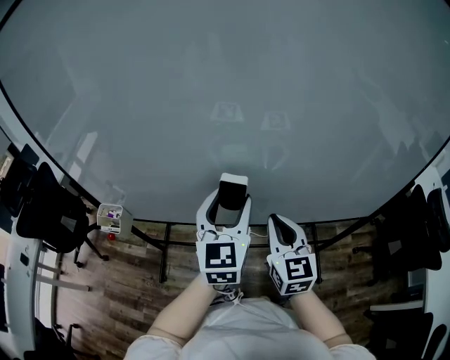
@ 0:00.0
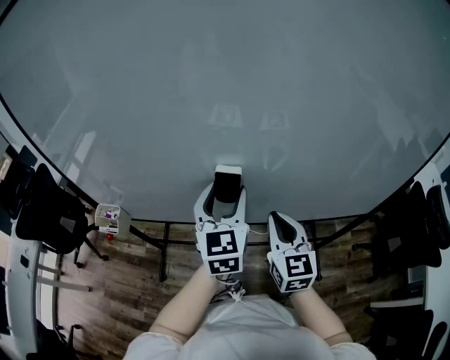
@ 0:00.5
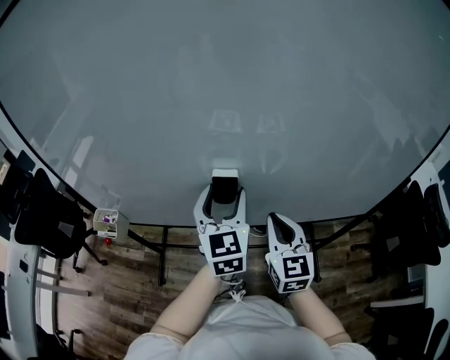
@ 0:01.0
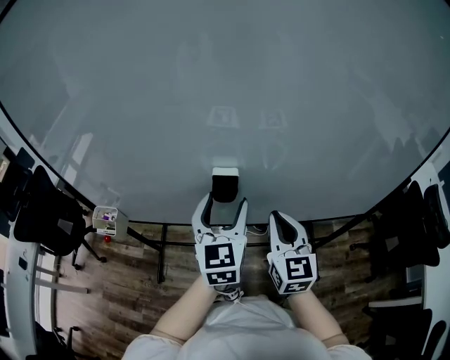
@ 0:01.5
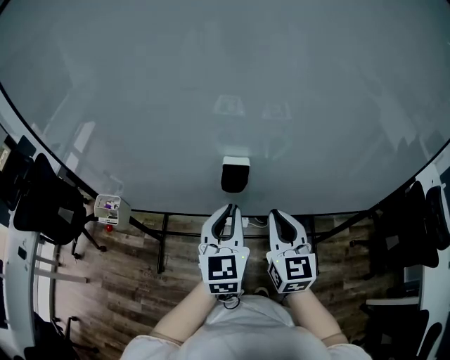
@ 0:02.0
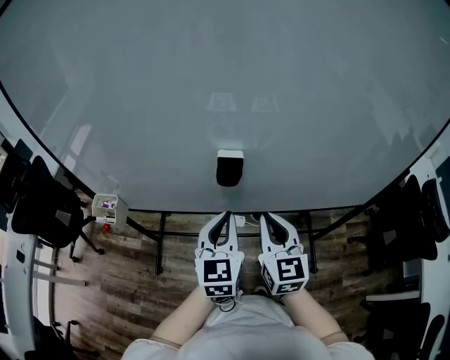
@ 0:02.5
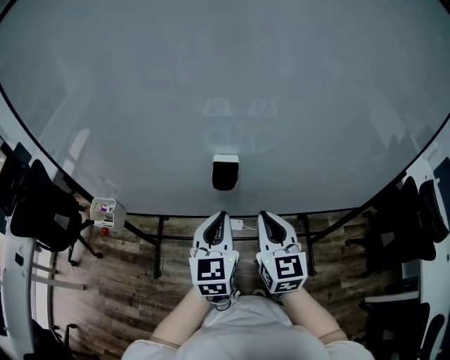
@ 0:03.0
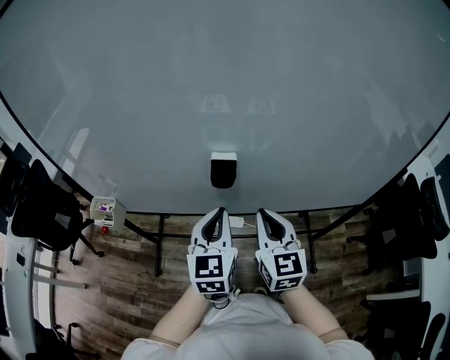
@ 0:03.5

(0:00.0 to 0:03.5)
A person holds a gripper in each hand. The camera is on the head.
0:00.0 - 0:02.0: The left gripper moves downward, about 5 cm, and closes.
0:02.0 - 0:03.5: The grippers move only a little.

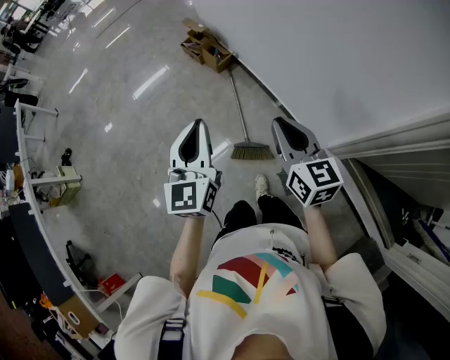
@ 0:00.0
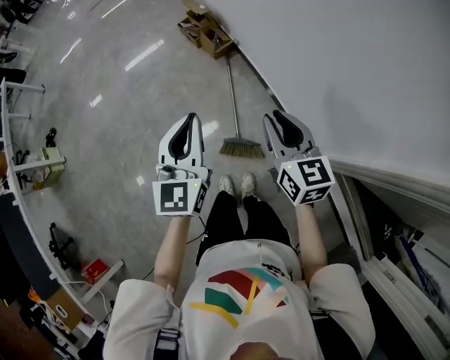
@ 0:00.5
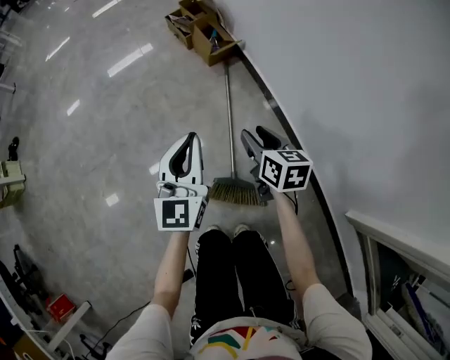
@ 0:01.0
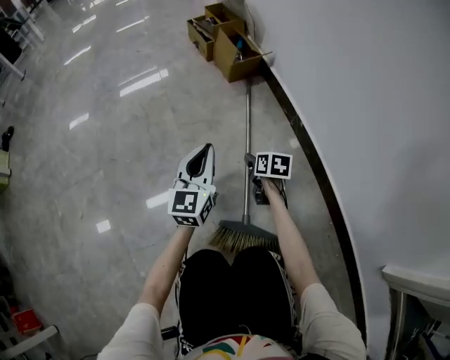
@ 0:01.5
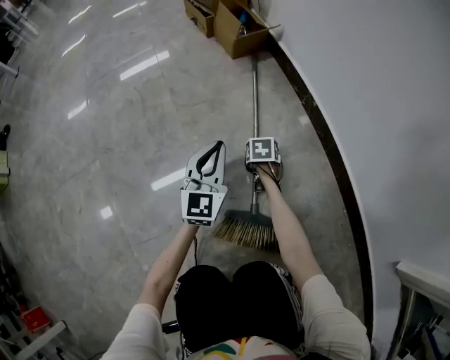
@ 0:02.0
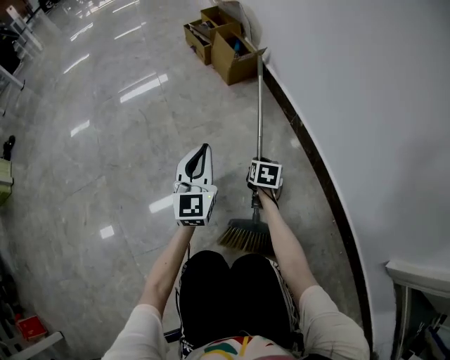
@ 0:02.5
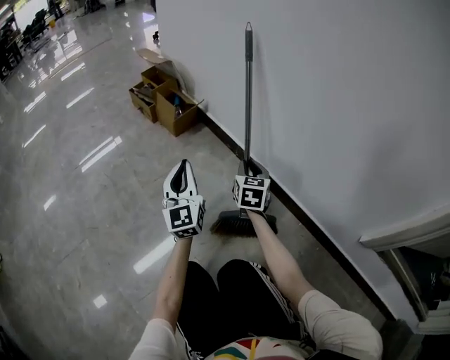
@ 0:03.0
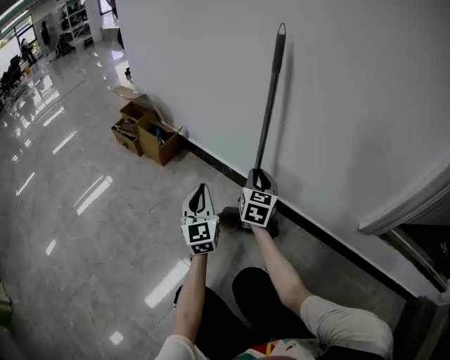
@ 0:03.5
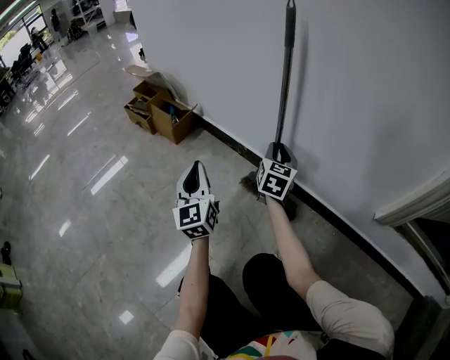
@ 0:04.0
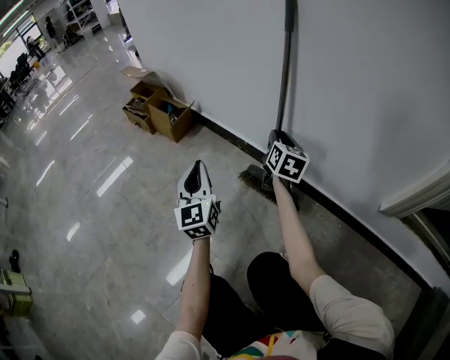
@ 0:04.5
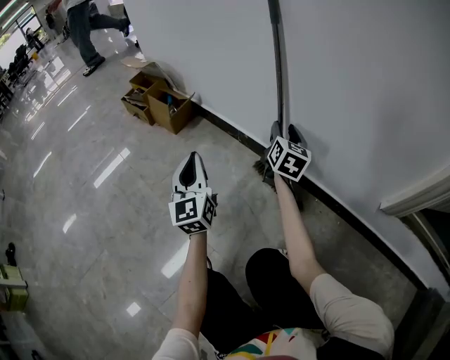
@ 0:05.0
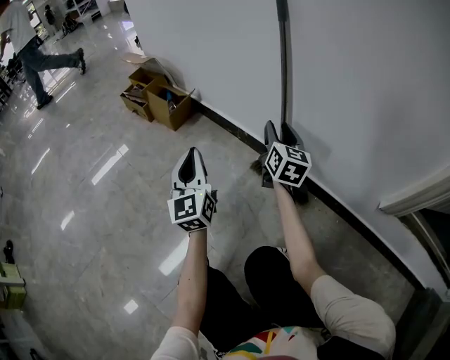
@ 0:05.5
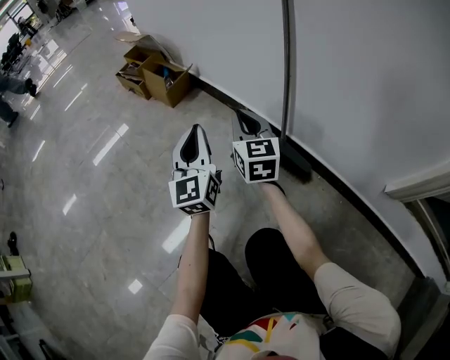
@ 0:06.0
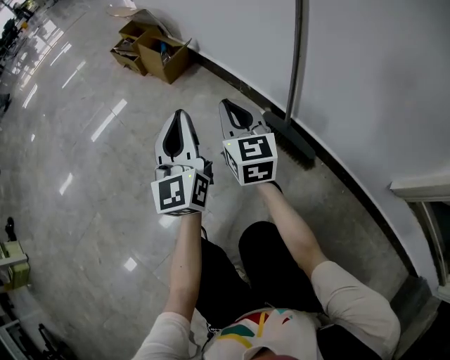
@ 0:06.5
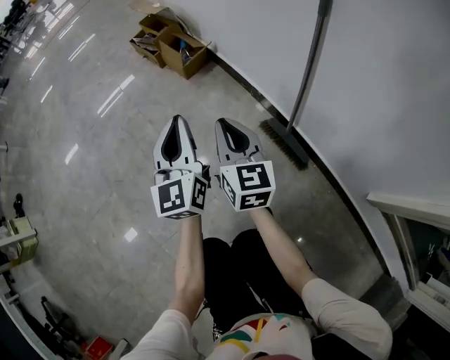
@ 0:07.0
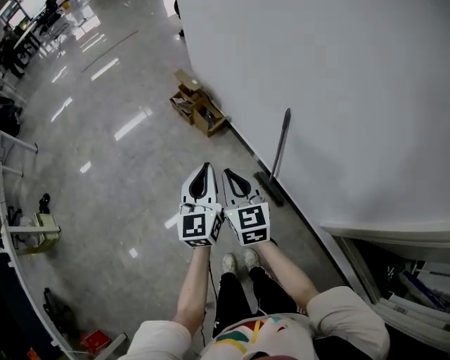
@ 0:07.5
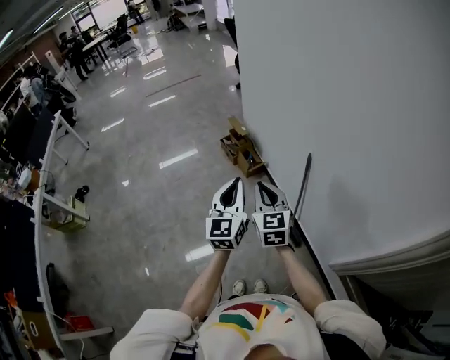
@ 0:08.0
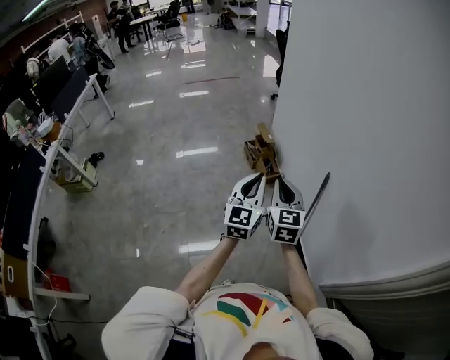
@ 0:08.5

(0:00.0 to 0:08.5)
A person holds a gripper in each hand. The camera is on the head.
0:00.0 - 0:02.0: The right gripper heads downward, covering some 1 m, tips its fingers downward by roughly 50 degrees, and opens up. Meanwhile the left gripper is displaced downward and forward by some 90 cm.
0:02.0 - 0:04.0: The right gripper travels upward by approximately 35 cm, and tips its fingers upward by approximately 50 degrees, while the left gripper is displaced upward by approximately 20 cm.
0:04.0 - 0:06.5: The right gripper travels to the left by roughly 15 cm, and rotates approximately 40 degrees.
0:06.5 - 0:08.5: Both grippers travel together upward, about 70 cm.

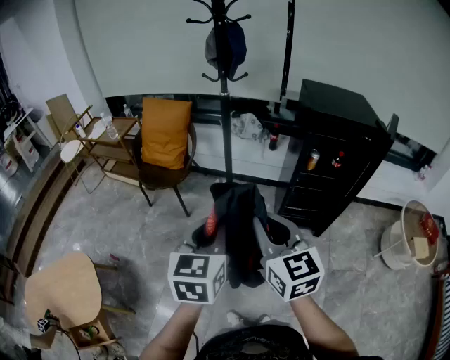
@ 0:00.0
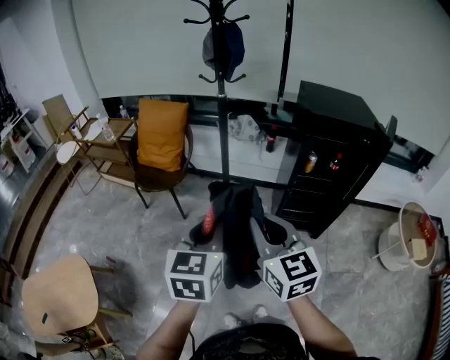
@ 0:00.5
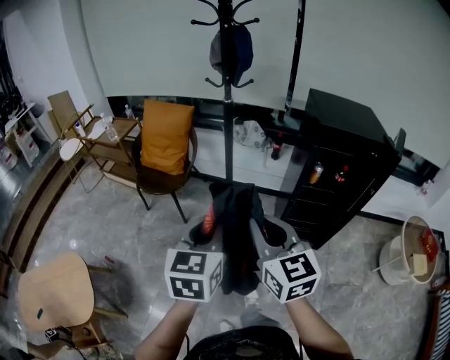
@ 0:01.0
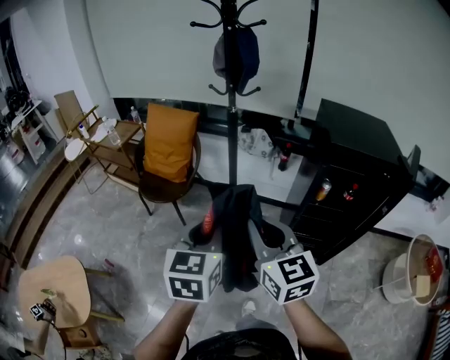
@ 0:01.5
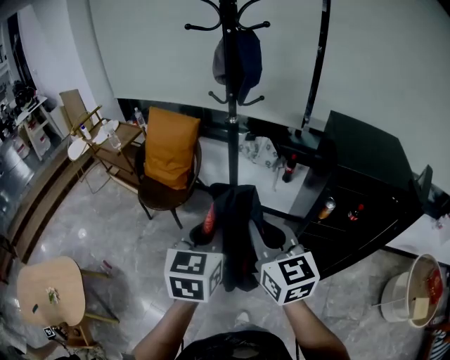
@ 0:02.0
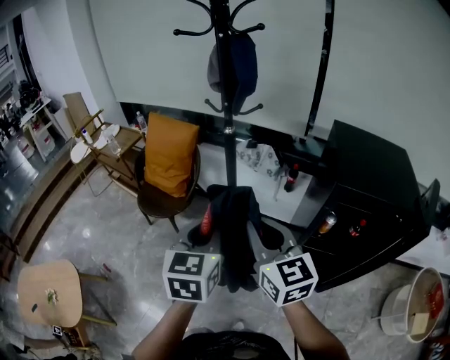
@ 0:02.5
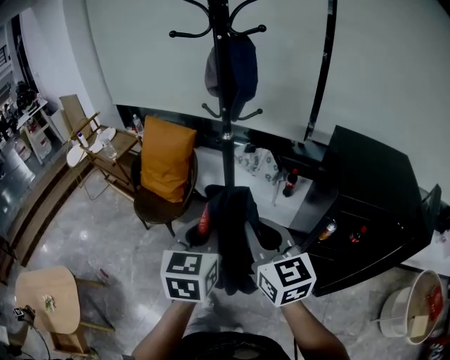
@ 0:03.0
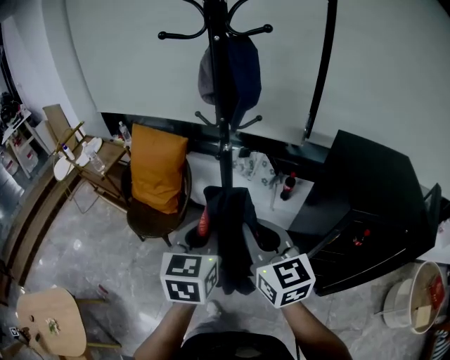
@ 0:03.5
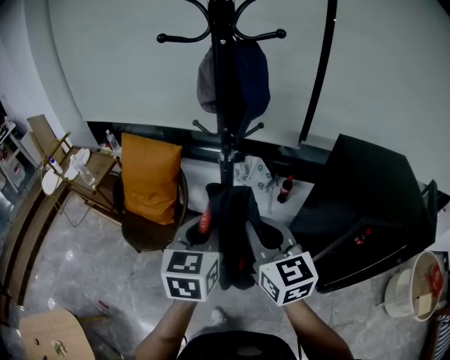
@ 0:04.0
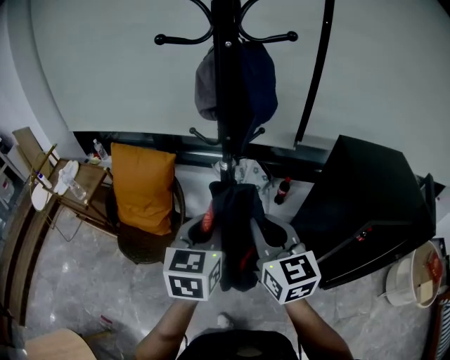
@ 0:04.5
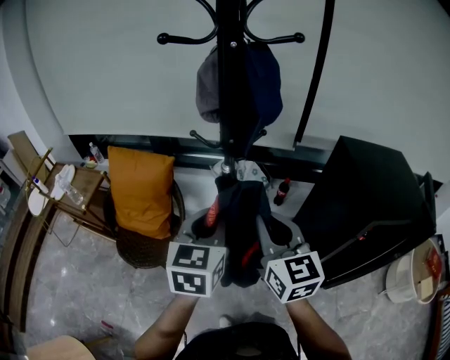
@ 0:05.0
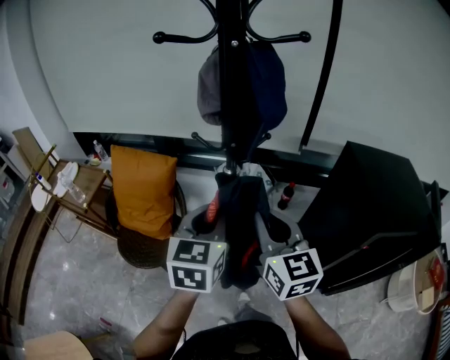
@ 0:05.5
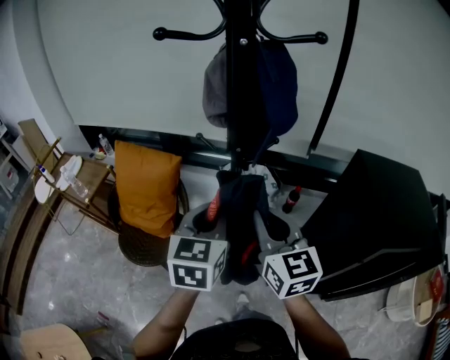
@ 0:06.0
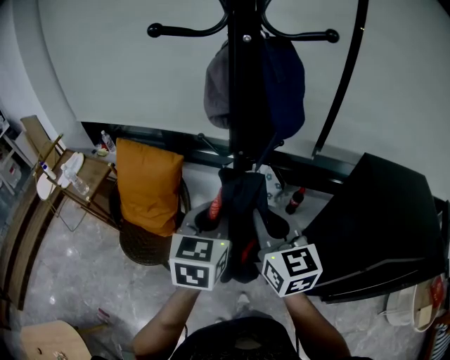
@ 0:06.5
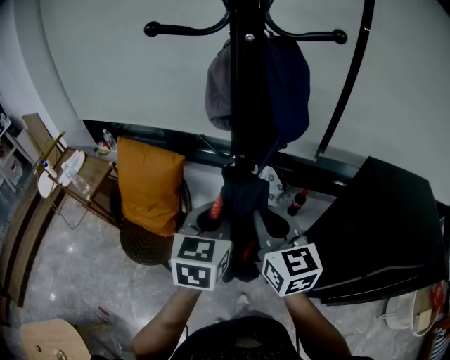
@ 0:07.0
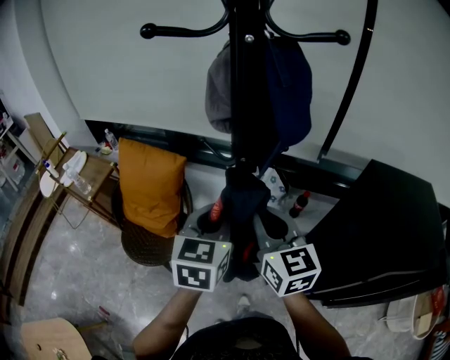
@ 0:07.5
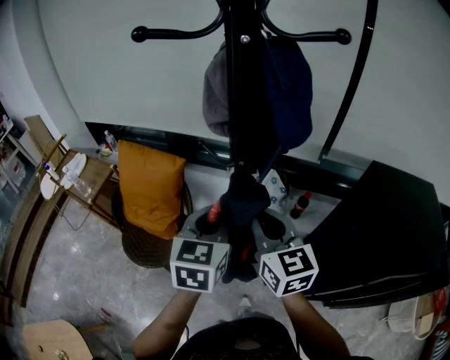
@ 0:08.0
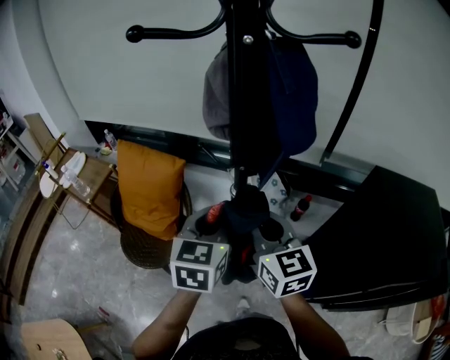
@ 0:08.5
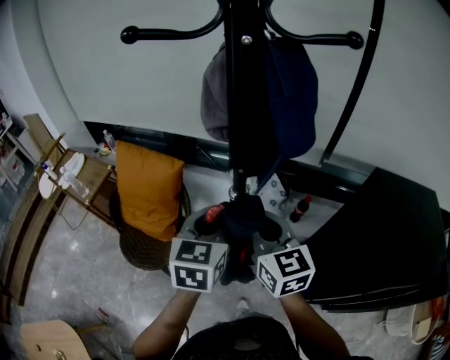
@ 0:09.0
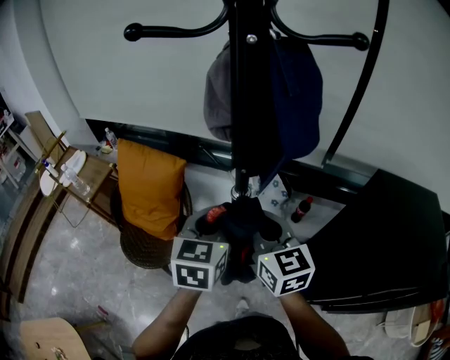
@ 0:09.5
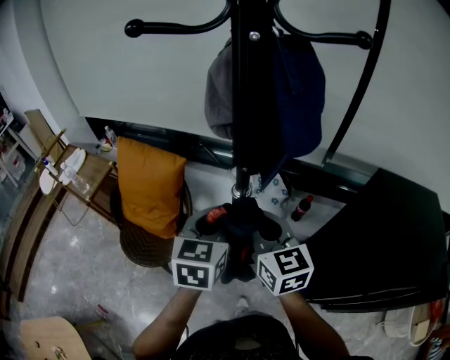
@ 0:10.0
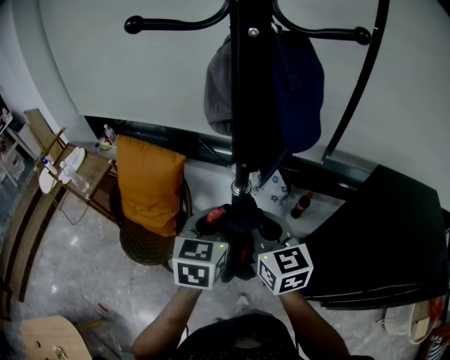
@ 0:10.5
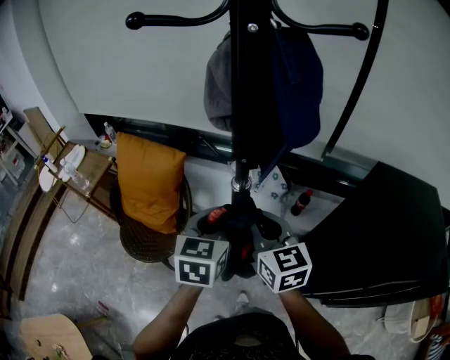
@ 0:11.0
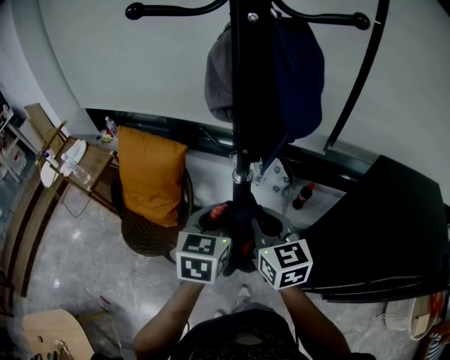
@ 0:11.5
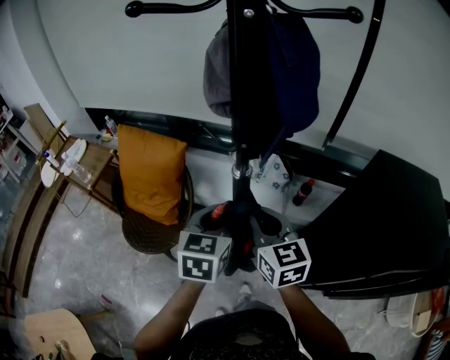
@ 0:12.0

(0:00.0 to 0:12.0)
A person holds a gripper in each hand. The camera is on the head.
0:00.0 - 0:02.0: The two grippers go roughly 25 cm forward.
0:02.0 - 0:04.0: Both grippers move forward, some 20 cm.
0:04.0 - 0:06.0: Both grippers travel together forward, about 10 cm.
0:06.0 - 0:08.0: The right gripper moves forward, some 5 cm; the left gripper ends up roughly 5 cm from where it was.
0:08.0 - 0:10.0: The grippers make only small movements.
0:10.0 - 0:12.0: The left gripper ends up approximately 5 cm from where it was.

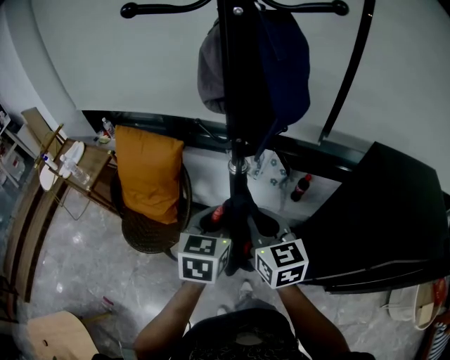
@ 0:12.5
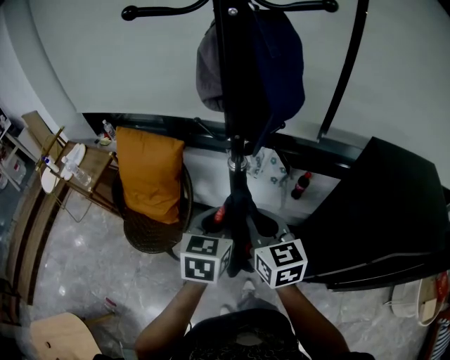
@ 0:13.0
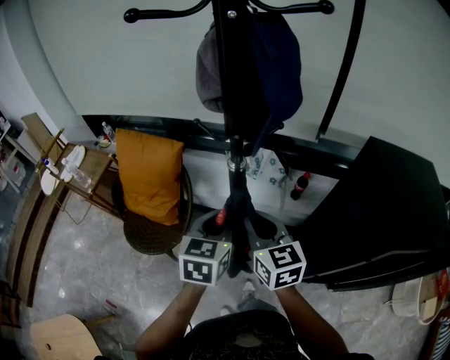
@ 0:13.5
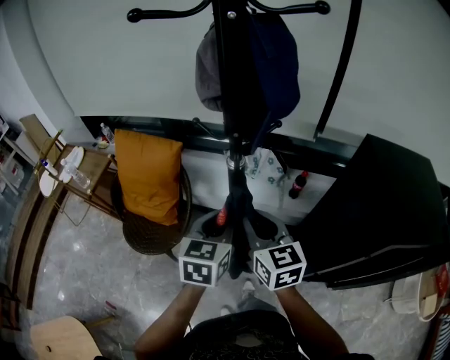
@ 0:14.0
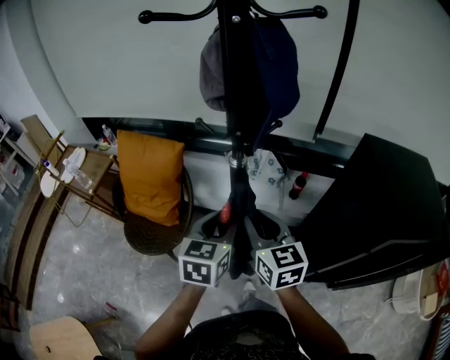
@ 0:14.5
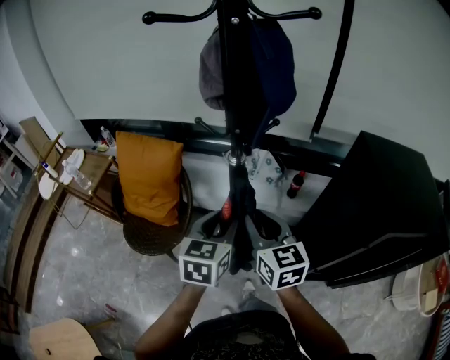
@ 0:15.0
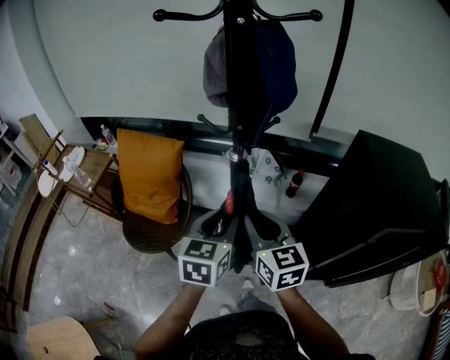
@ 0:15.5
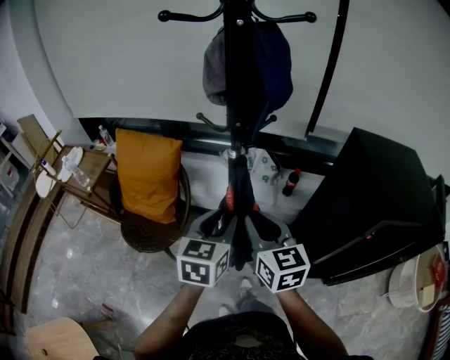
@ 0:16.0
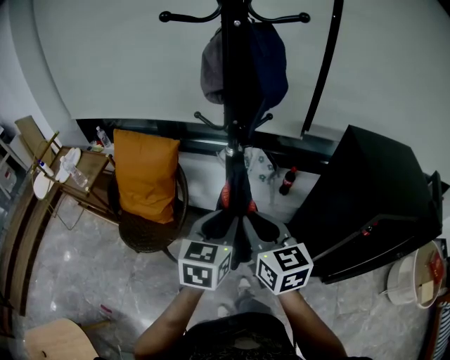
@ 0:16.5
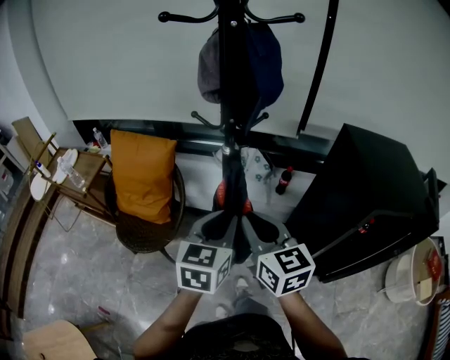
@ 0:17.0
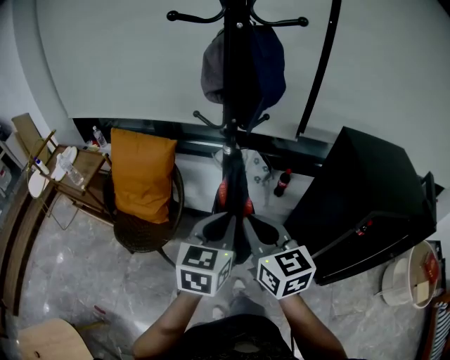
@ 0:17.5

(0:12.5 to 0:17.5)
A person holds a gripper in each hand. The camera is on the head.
0:12.5 - 0:15.0: Both grippers move backward, roughly 5 cm.
0:15.0 - 0:17.5: The two grippers go roughly 10 cm backward. The left gripper closes.
